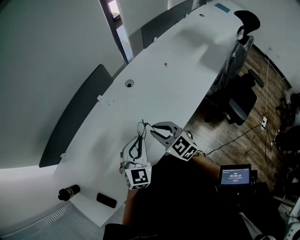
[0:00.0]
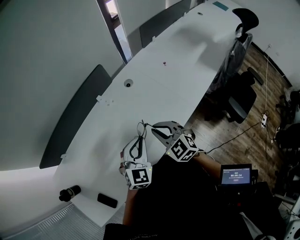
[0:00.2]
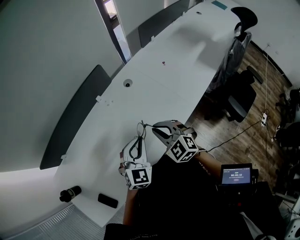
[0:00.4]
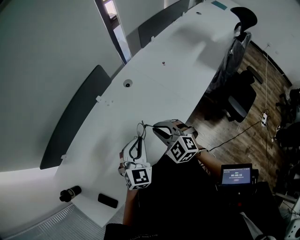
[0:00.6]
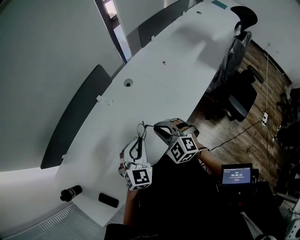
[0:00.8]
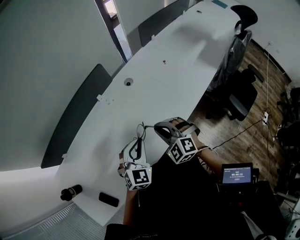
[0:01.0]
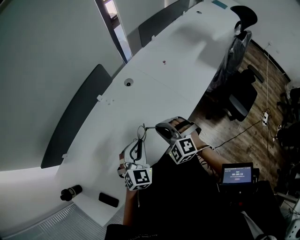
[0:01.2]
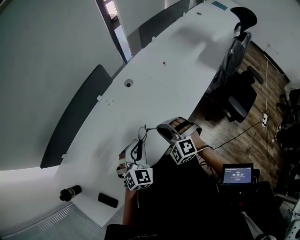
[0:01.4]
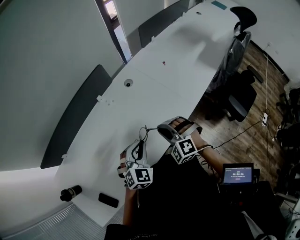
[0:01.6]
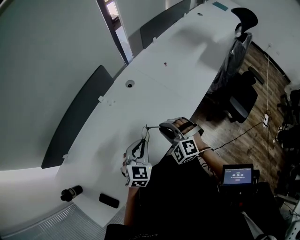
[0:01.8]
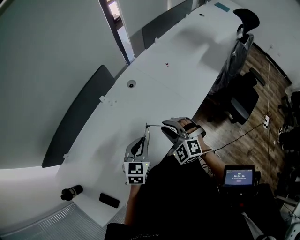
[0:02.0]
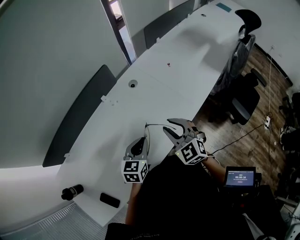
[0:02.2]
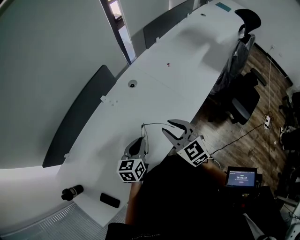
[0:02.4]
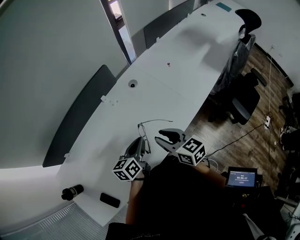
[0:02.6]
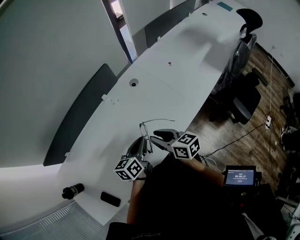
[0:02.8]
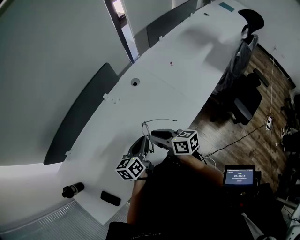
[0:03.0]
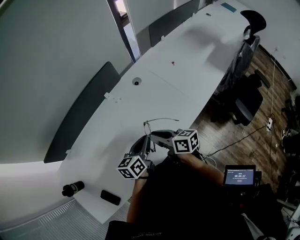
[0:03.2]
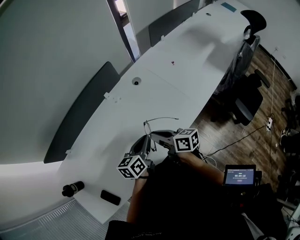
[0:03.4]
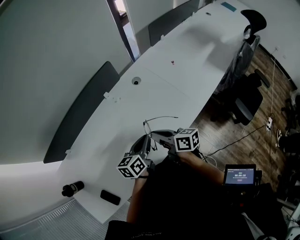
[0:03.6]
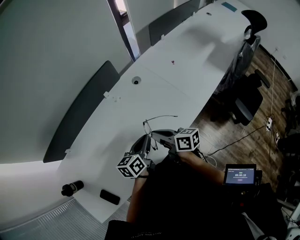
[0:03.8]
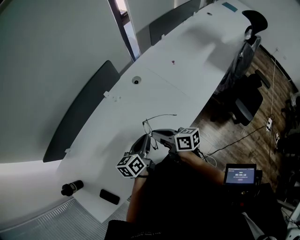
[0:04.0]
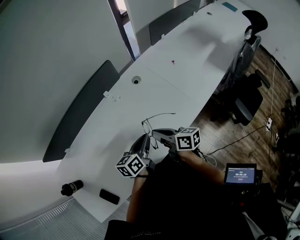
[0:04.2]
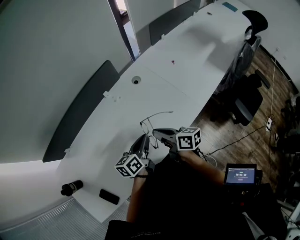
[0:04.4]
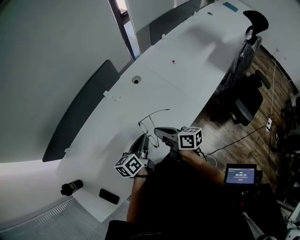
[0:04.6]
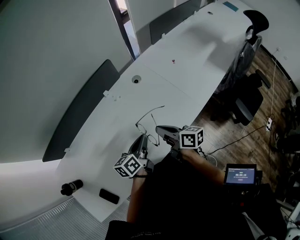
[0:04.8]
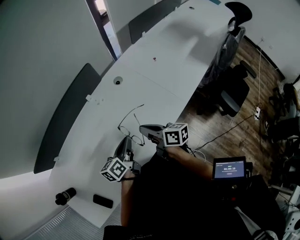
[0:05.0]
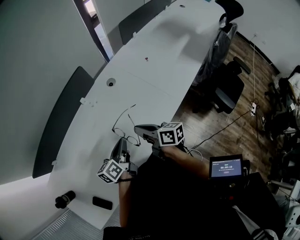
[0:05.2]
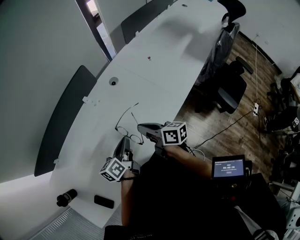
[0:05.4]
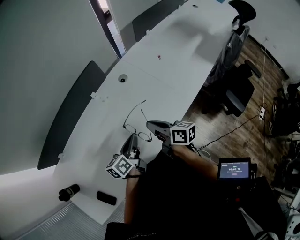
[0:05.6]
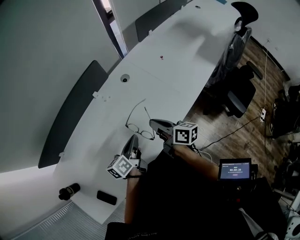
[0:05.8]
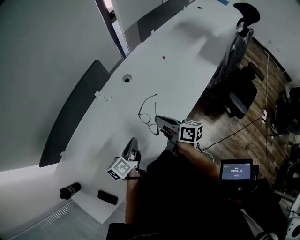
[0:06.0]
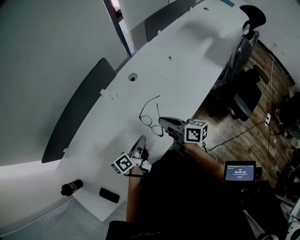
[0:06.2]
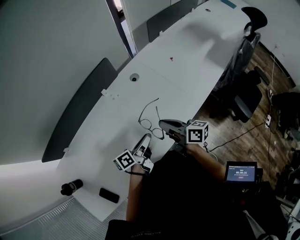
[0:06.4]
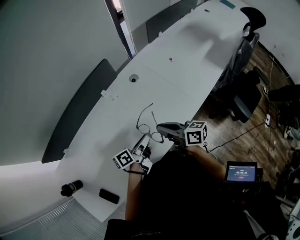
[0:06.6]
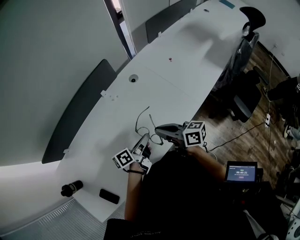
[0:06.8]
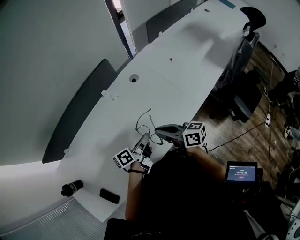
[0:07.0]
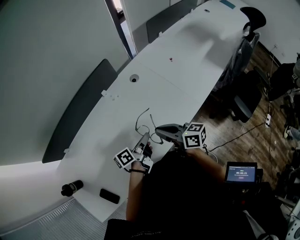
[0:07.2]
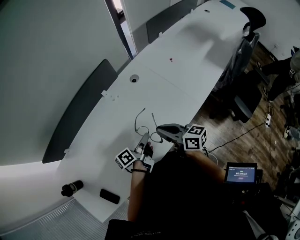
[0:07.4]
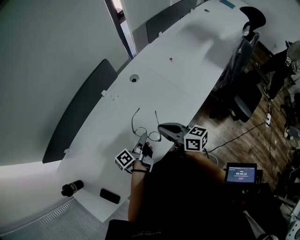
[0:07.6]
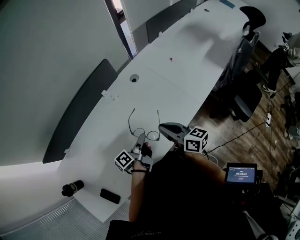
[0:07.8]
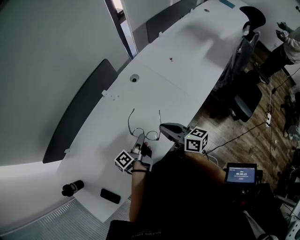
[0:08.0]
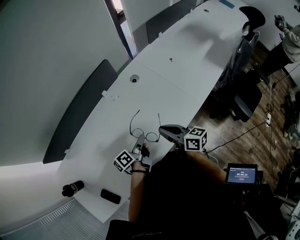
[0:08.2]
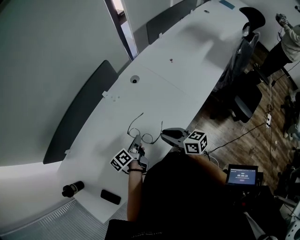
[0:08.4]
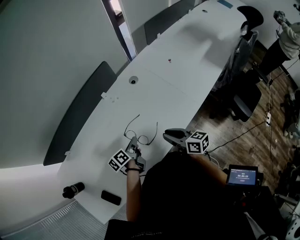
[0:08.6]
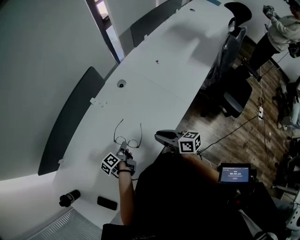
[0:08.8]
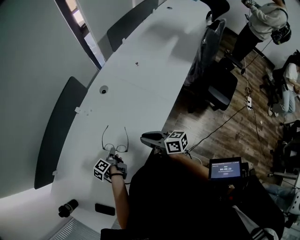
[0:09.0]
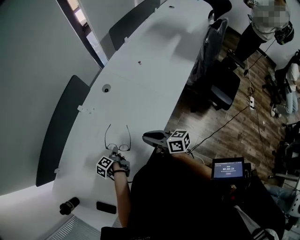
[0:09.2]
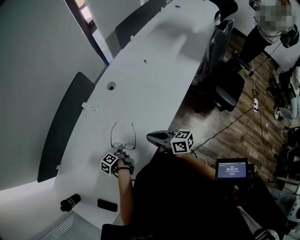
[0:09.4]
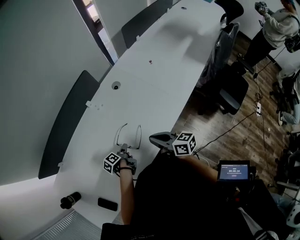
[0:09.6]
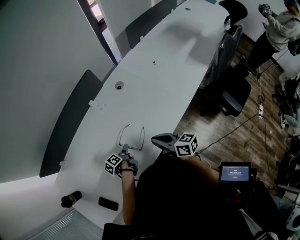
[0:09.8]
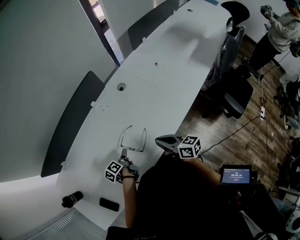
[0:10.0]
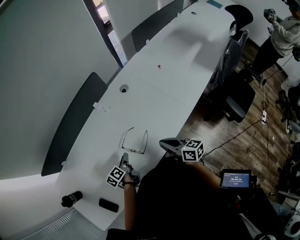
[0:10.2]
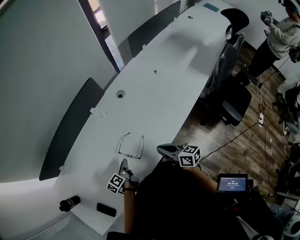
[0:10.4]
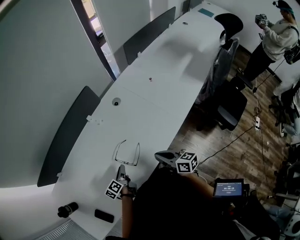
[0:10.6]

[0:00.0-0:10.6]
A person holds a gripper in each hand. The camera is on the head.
0.0 to 1.6 s: The right gripper ends up some 5 cm from where it was, and twists about 50 degrees counterclockwise, seen from behind.
1.6 to 3.0 s: The left gripper rotates around the line of its fingers by roughly 70 degrees, counterclockwise from behind. Meanwhile the right gripper changes place by roughly 5 cm, and rotates around the line of its fingers by some 90 degrees, clockwise from behind.
3.0 to 4.6 s: The right gripper closes its fingers.
4.6 to 6.0 s: The right gripper shifts roughly 5 cm to the right.
6.0 to 7.6 s: The left gripper swivels approximately 30 degrees, and opens and closes again.
7.6 to 9.0 s: The right gripper goes roughly 5 cm downward. The left gripper shifts approximately 15 cm downward and to the left, and turns by about 30 degrees.
9.0 to 10.6 s: The left gripper ends up roughly 5 cm from where it was, and opens.

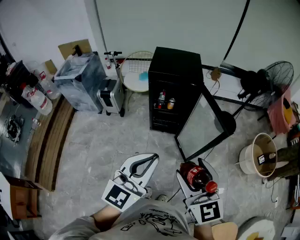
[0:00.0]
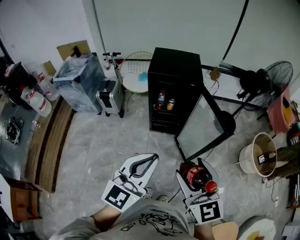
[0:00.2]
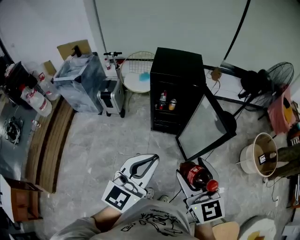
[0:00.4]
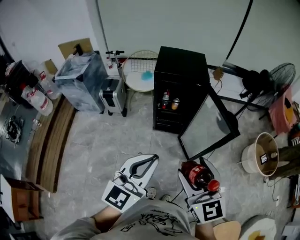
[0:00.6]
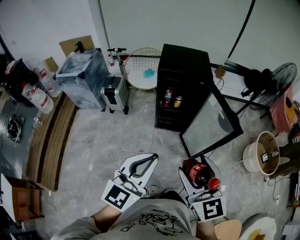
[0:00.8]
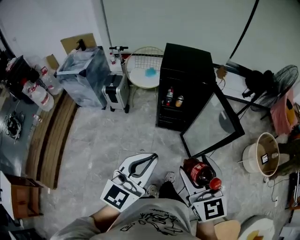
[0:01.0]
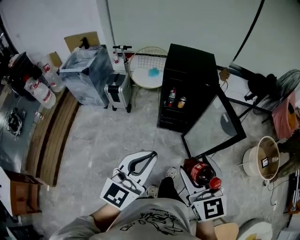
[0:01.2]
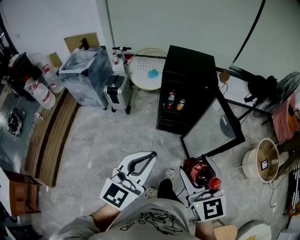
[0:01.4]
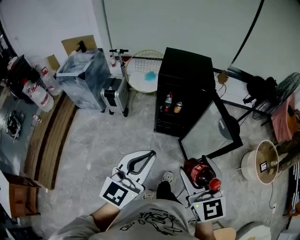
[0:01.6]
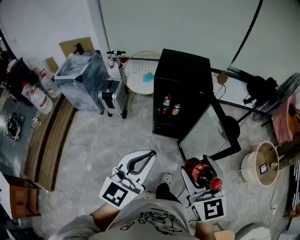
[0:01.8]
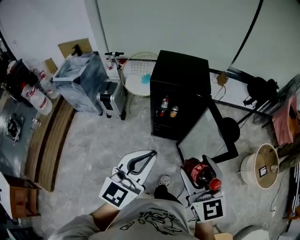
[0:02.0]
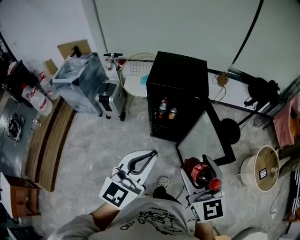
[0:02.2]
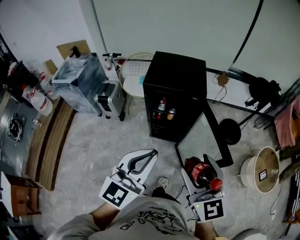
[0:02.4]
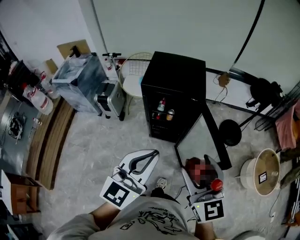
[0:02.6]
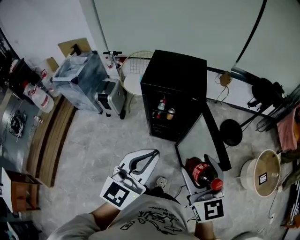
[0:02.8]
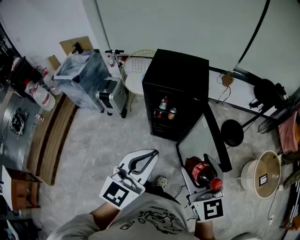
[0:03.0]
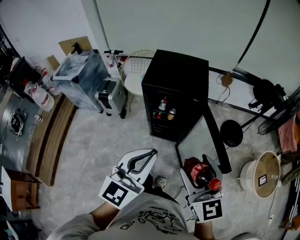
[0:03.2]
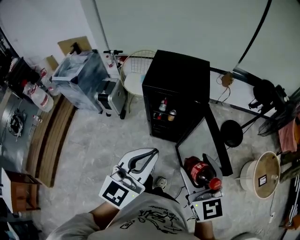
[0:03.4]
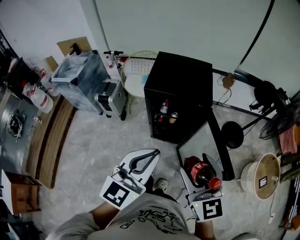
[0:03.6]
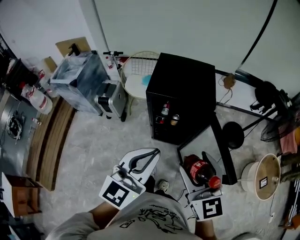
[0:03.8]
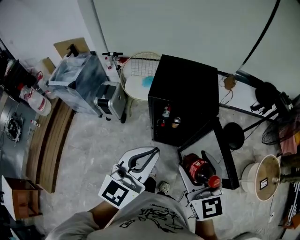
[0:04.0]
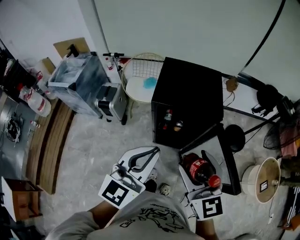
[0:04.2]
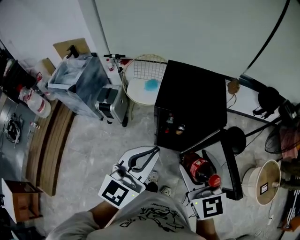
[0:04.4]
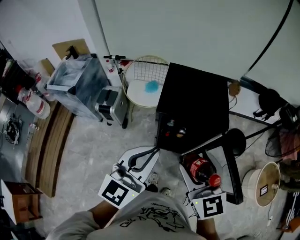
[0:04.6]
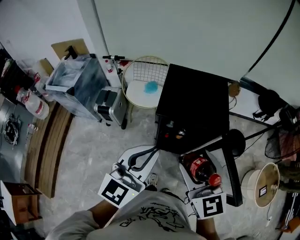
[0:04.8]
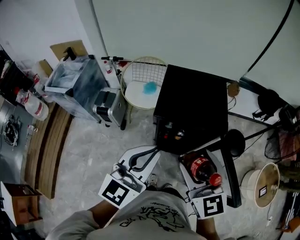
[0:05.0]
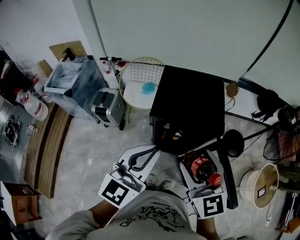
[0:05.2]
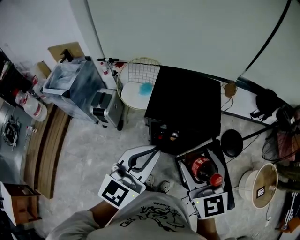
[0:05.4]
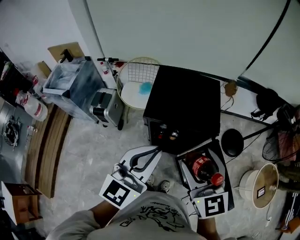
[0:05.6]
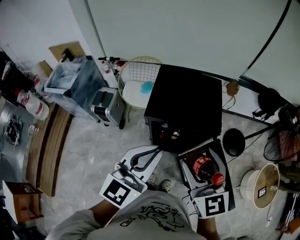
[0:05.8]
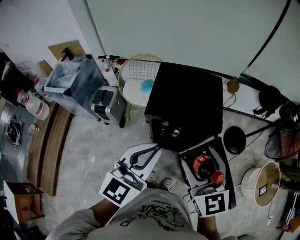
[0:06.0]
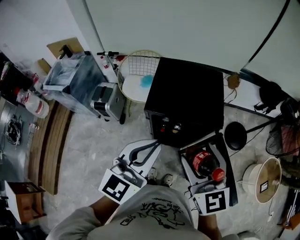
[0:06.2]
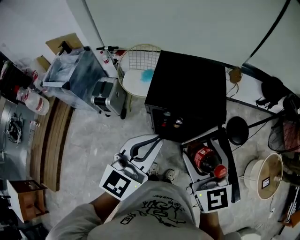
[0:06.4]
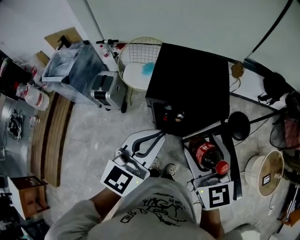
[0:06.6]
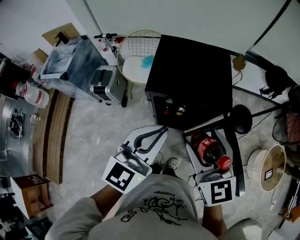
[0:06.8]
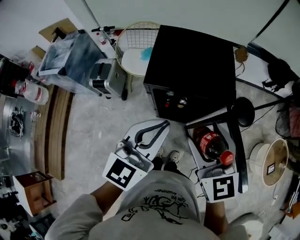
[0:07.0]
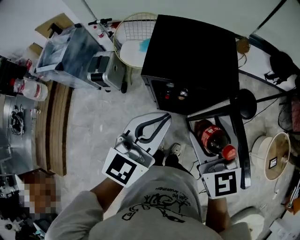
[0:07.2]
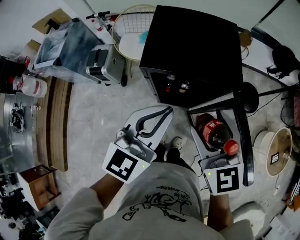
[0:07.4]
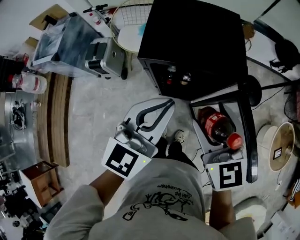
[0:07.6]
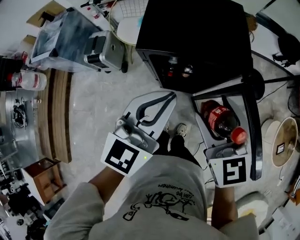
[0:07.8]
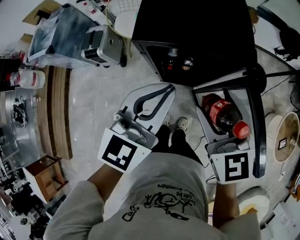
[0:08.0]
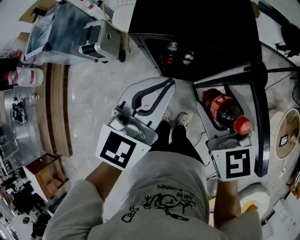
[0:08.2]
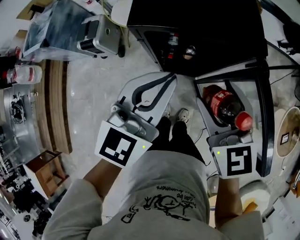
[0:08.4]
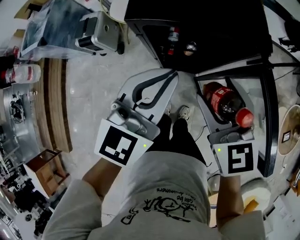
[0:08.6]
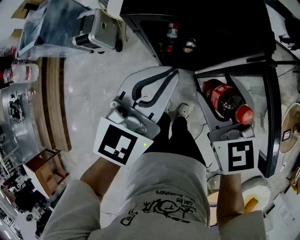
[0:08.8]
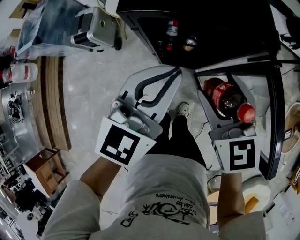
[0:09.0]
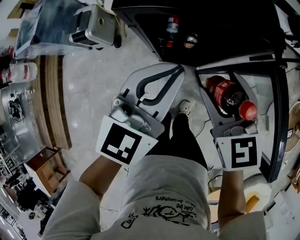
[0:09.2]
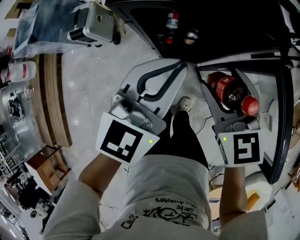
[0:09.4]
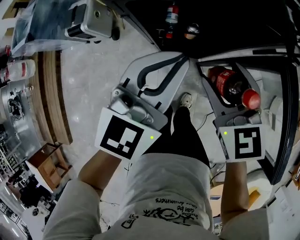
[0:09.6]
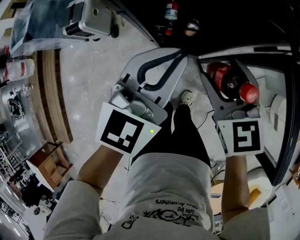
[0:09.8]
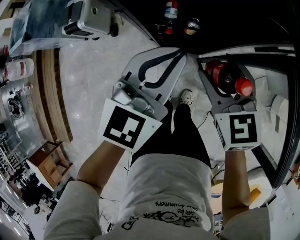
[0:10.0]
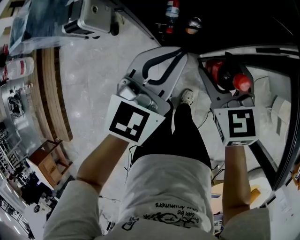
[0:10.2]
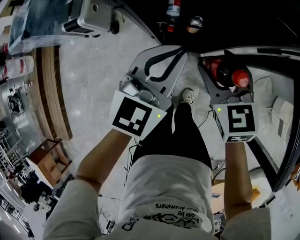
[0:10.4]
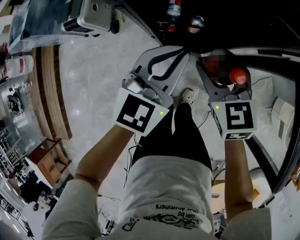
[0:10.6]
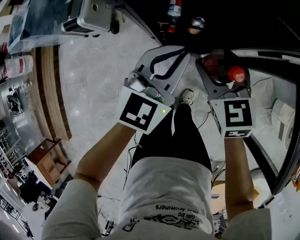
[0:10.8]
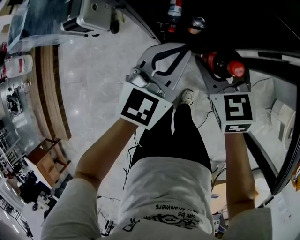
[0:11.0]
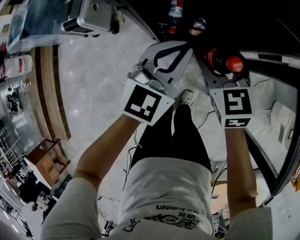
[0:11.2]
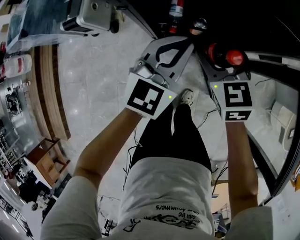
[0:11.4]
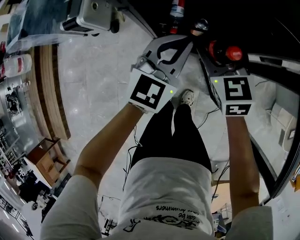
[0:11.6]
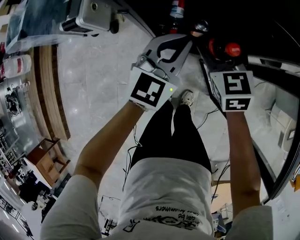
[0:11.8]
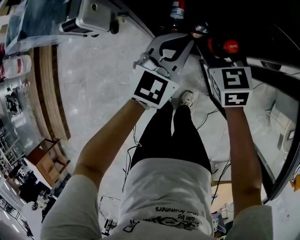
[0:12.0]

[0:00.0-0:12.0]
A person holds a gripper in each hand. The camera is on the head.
0.0 to 1.6 s: The left gripper travels to the left and forward by roughly 10 cm. The right gripper moves forward, about 5 cm.
1.6 to 3.0 s: The grippers both shift forward and to the right by approximately 15 cm.
3.0 to 4.4 s: Both grippers travel together forward and to the left, some 20 cm.
4.4 to 6.0 s: Both grippers move forward, approximately 5 cm.
6.0 to 7.6 s: The grippers both shift downward by approximately 10 cm.
7.6 to 9.0 s: The two grippers go approximately 10 cm downward.
9.0 to 10.4 s: The grippers both shift downward by roughly 15 cm.
10.4 to 12.0 s: The grippers both shift forward and downward by about 10 cm.

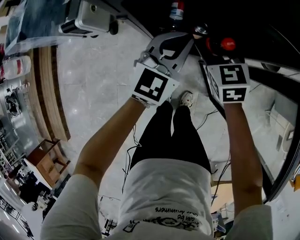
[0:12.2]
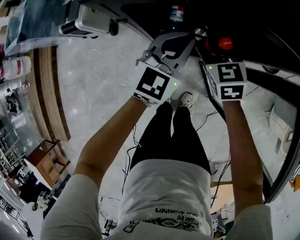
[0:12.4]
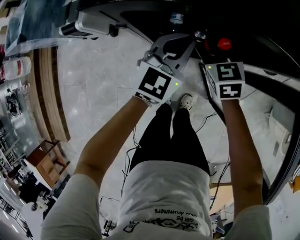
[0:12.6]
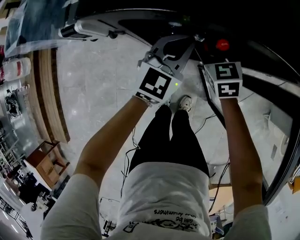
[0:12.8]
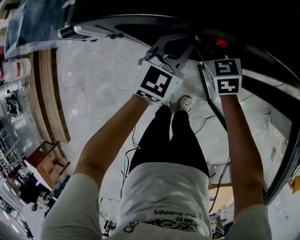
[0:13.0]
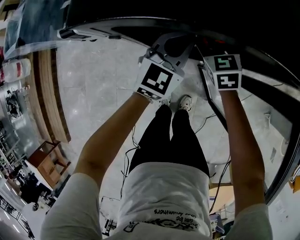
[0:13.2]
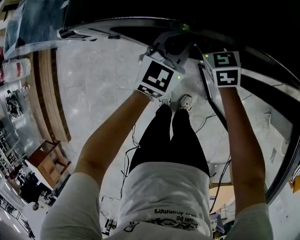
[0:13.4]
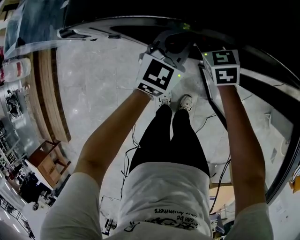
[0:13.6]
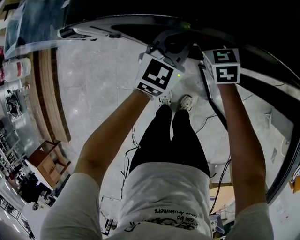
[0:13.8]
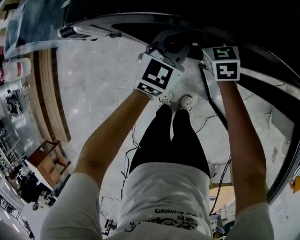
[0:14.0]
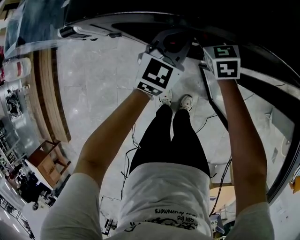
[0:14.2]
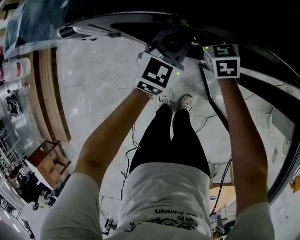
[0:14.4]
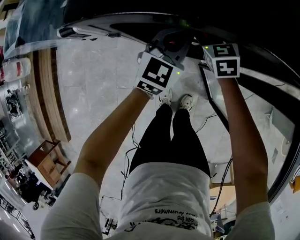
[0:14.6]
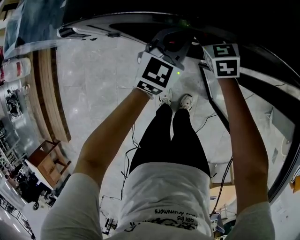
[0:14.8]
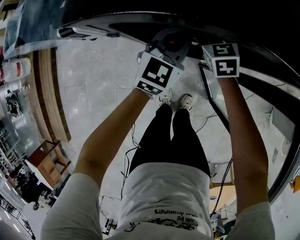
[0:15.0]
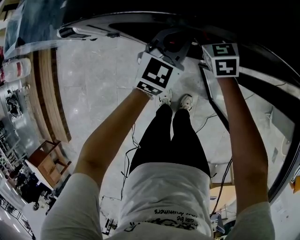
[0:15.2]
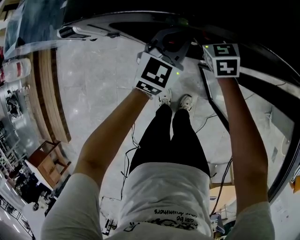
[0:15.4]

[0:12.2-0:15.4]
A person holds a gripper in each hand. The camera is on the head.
12.2 to 13.8 s: The left gripper goes roughly 5 cm forward. The right gripper is displaced forward and downward by about 10 cm.
13.8 to 15.4 s: The grippers make only small movements.
